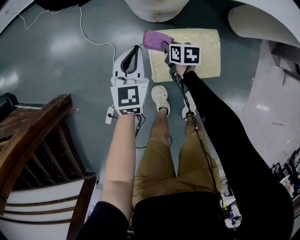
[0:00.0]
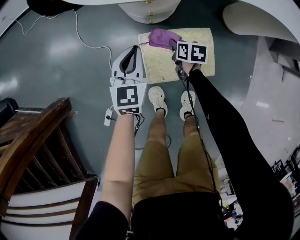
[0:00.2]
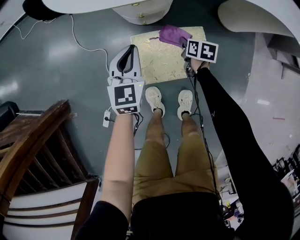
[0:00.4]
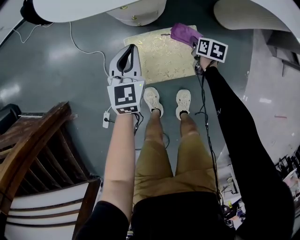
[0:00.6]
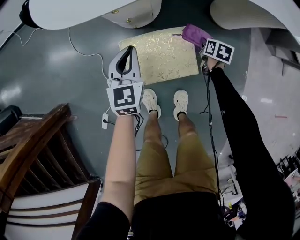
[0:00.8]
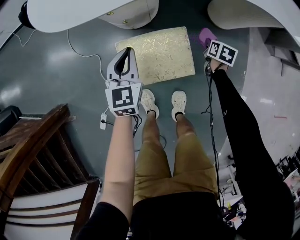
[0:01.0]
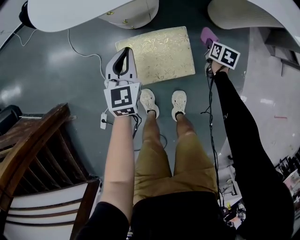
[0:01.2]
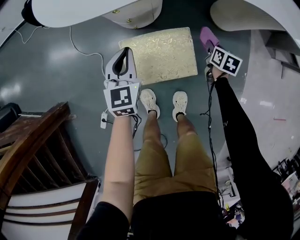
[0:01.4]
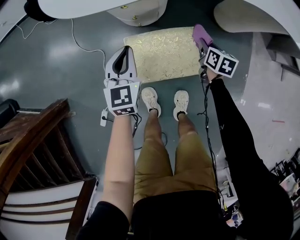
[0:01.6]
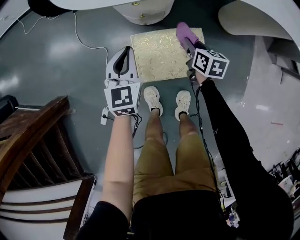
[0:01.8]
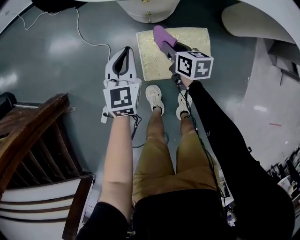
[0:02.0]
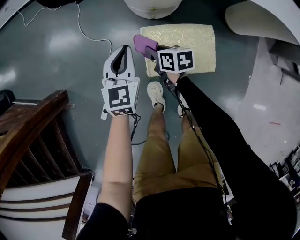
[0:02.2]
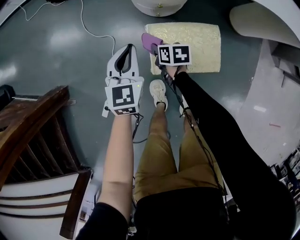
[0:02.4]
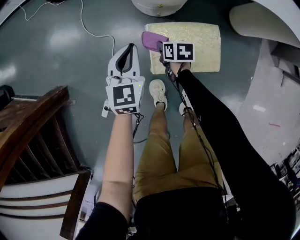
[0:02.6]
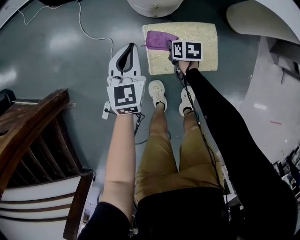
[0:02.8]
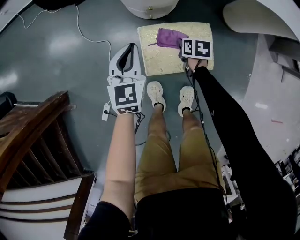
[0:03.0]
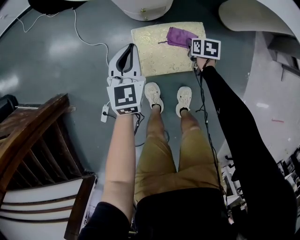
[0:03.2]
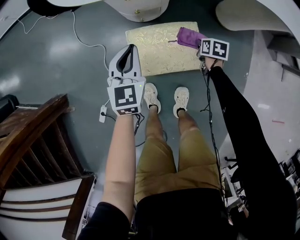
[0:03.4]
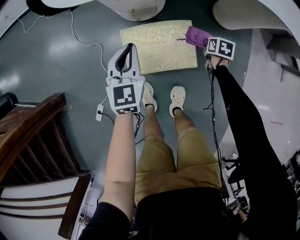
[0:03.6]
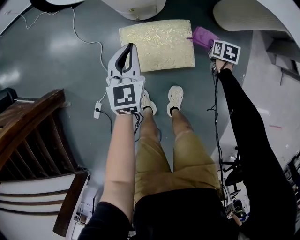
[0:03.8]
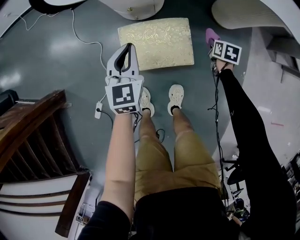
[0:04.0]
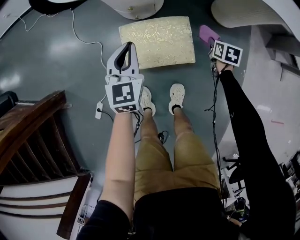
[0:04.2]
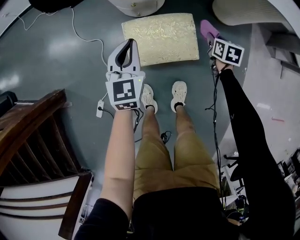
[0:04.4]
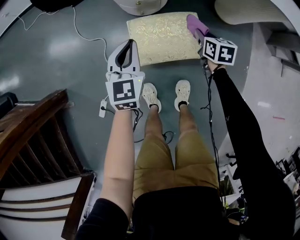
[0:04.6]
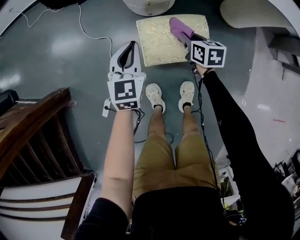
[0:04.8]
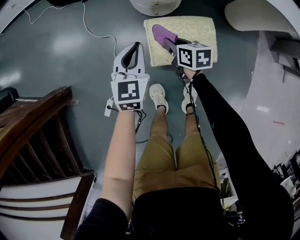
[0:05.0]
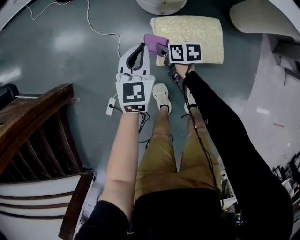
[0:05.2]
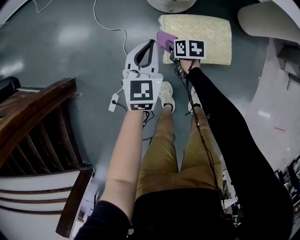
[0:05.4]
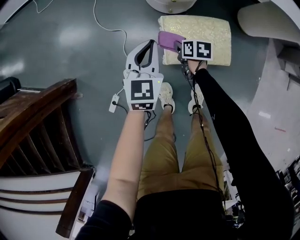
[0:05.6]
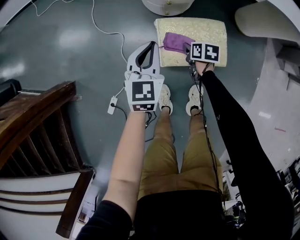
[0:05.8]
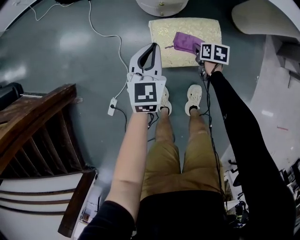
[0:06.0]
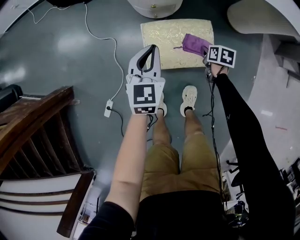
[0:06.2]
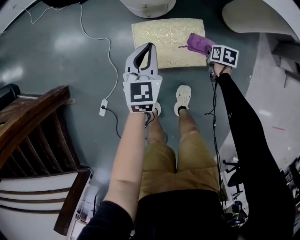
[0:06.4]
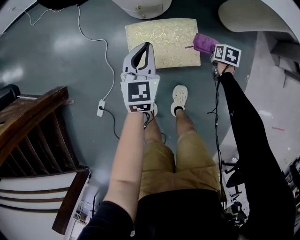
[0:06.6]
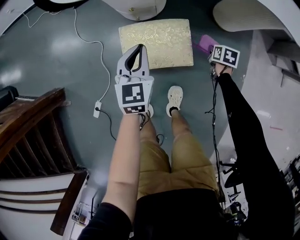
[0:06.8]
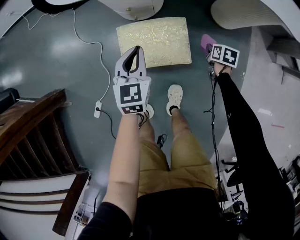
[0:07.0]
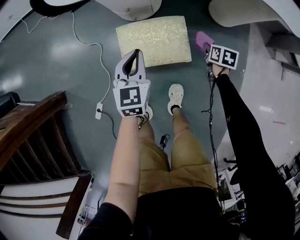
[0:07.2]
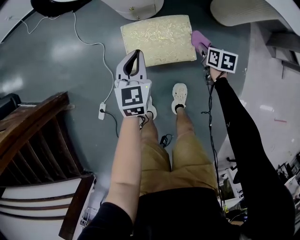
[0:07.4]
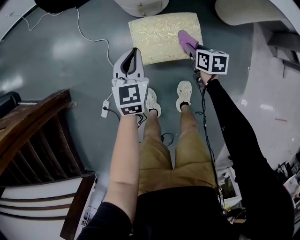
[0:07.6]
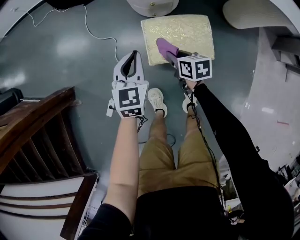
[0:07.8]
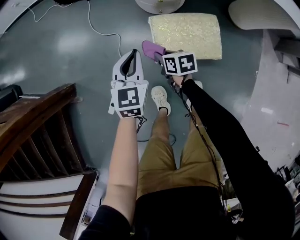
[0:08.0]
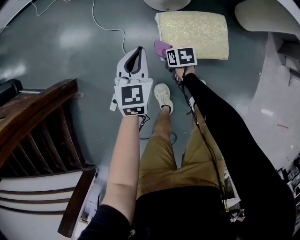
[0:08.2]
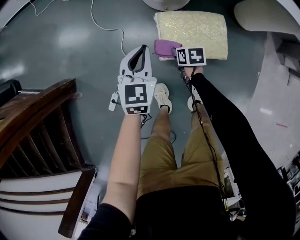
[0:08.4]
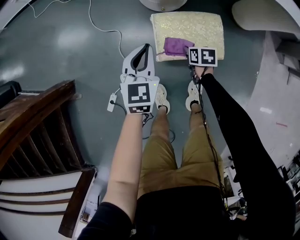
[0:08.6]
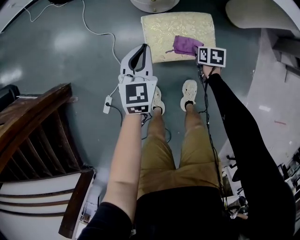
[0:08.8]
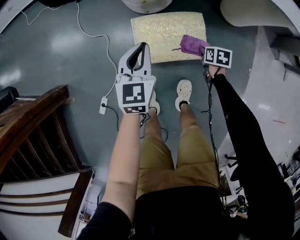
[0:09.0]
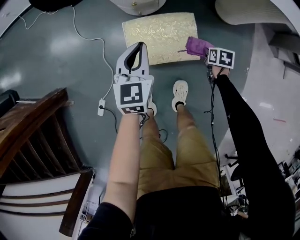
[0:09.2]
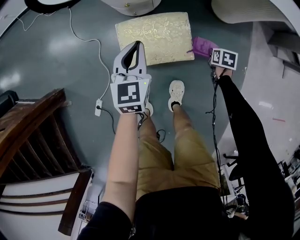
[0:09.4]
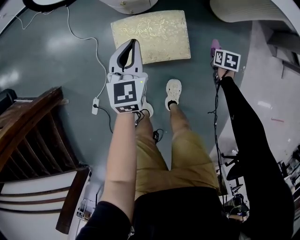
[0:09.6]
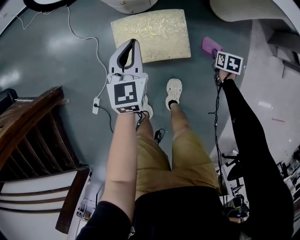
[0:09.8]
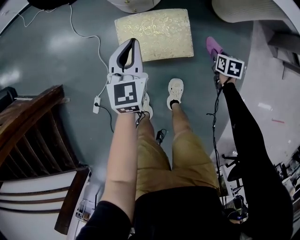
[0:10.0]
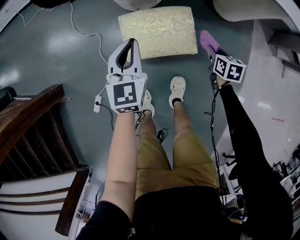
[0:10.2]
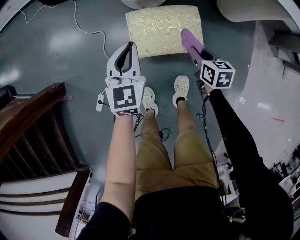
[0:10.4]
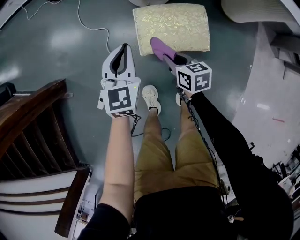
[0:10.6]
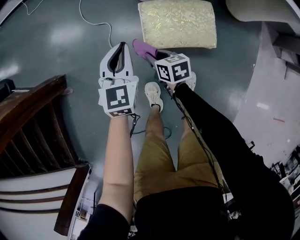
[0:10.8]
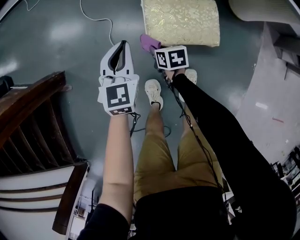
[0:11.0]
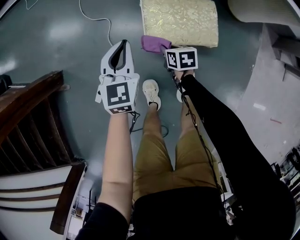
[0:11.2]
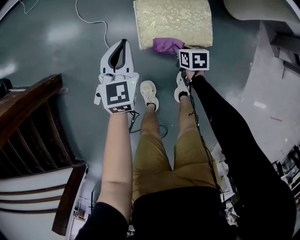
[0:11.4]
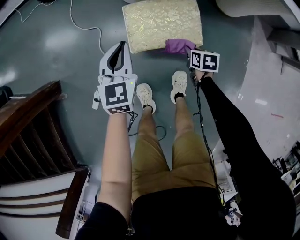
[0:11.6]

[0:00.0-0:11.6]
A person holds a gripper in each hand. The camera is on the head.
0:00.0 to 0:01.4: The right gripper travels to the right by approximately 35 cm, and turns by some 30 degrees; the left gripper moves to the right, roughly 10 cm.
0:01.4 to 0:02.8: The left gripper moves some 10 cm. Meanwhile the right gripper changes place by roughly 30 cm, and rotates some 20 degrees.
0:02.8 to 0:04.4: The right gripper goes some 30 cm to the right, while the left gripper travels to the right by approximately 10 cm.
0:04.4 to 0:05.8: The right gripper heads to the left, covering roughly 25 cm, and rotates about 20 degrees; the left gripper is displaced to the left by roughly 10 cm.
0:05.8 to 0:07.2: The left gripper is displaced to the right by roughly 15 cm, while the right gripper moves to the right, approximately 30 cm.
0:07.2 to 0:08.8: The right gripper goes some 20 cm to the left. The left gripper goes some 10 cm to the left.
0:08.8 to 0:10.2: The left gripper goes roughly 5 cm to the right. The right gripper is displaced to the right and upward by approximately 15 cm.
0:10.2 to 0:11.6: The right gripper is displaced downward by roughly 5 cm, and reaches some 35 cm to the left, then returns. Meanwhile the left gripper heads to the left, covering approximately 10 cm.

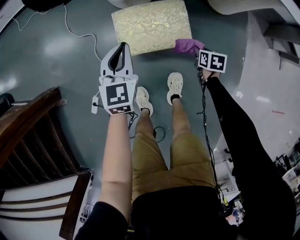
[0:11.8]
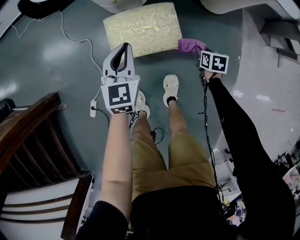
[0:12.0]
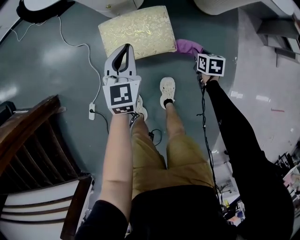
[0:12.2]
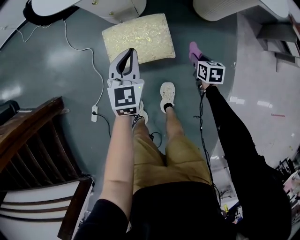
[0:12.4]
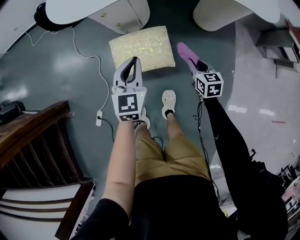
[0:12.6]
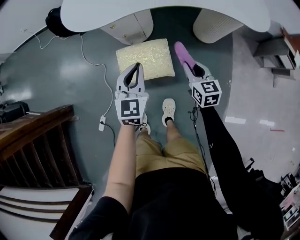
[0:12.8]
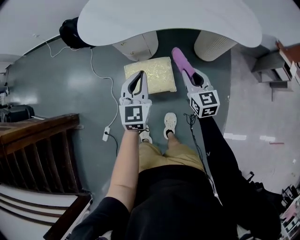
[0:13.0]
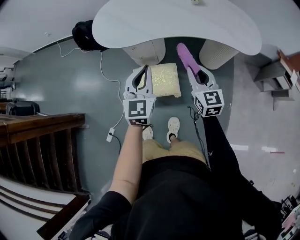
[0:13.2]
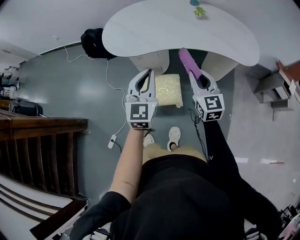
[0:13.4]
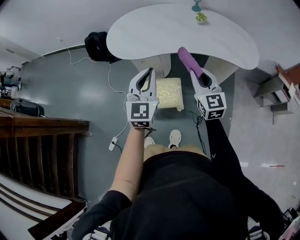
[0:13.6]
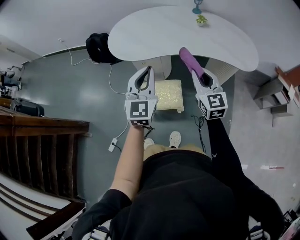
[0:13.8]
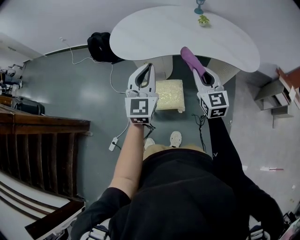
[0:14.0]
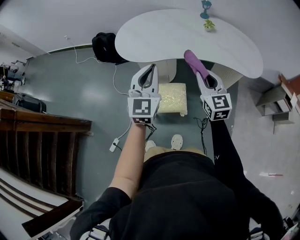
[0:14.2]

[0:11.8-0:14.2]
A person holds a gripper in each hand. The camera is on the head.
0:11.8 to 0:13.0: The right gripper travels upward by approximately 40 cm, and tips its fingers upward by approximately 40 degrees. The left gripper heads upward and to the right, covering roughly 25 cm.
0:13.0 to 0:14.2: The grippers both shift upward by about 20 cm.

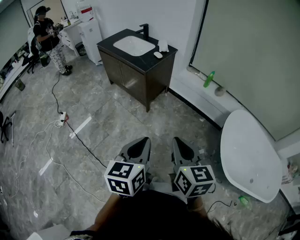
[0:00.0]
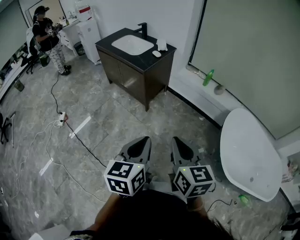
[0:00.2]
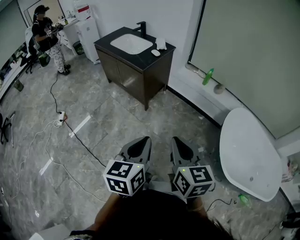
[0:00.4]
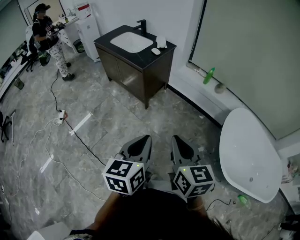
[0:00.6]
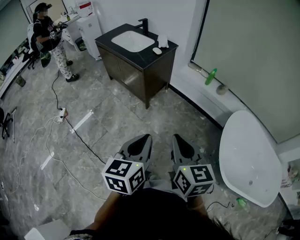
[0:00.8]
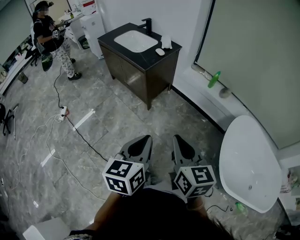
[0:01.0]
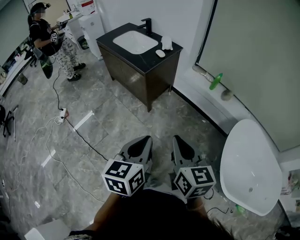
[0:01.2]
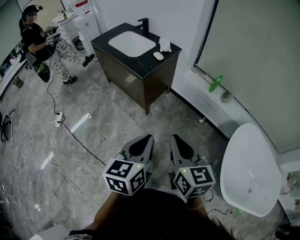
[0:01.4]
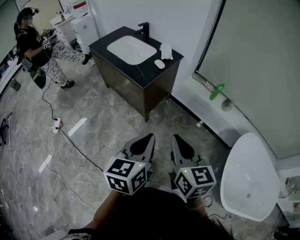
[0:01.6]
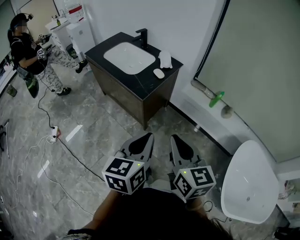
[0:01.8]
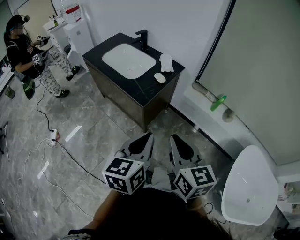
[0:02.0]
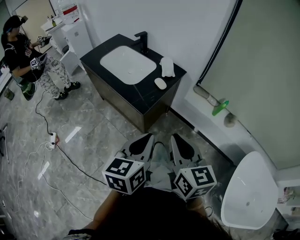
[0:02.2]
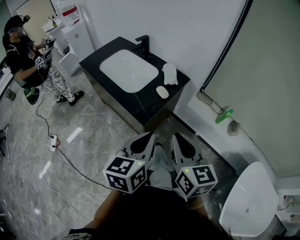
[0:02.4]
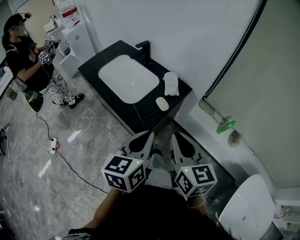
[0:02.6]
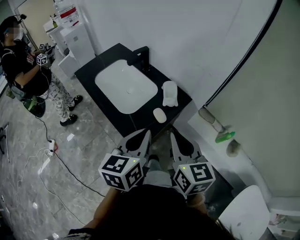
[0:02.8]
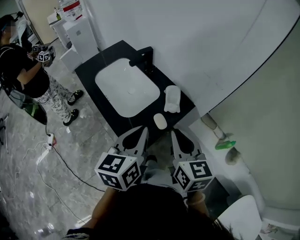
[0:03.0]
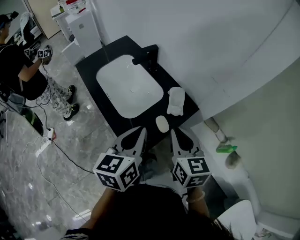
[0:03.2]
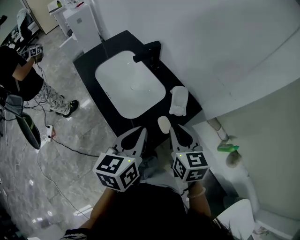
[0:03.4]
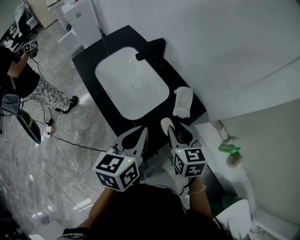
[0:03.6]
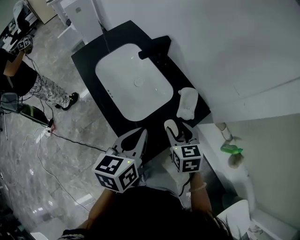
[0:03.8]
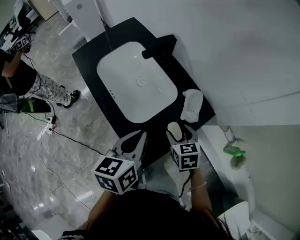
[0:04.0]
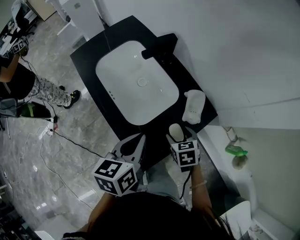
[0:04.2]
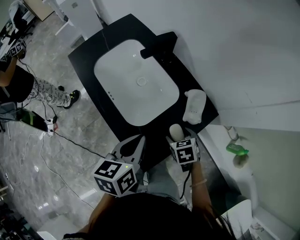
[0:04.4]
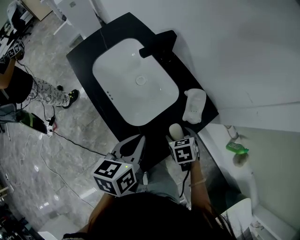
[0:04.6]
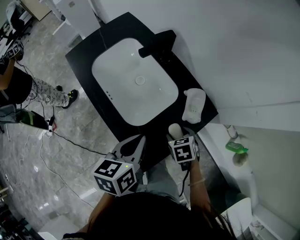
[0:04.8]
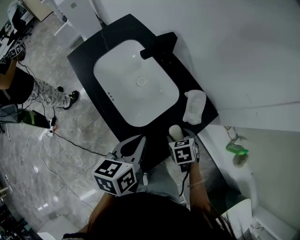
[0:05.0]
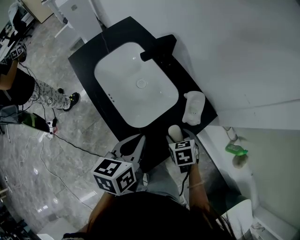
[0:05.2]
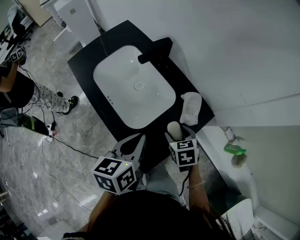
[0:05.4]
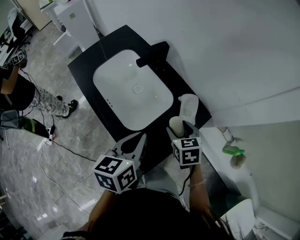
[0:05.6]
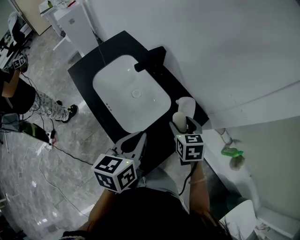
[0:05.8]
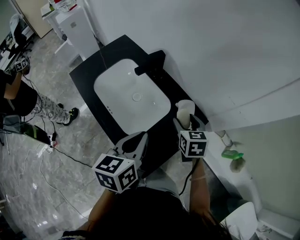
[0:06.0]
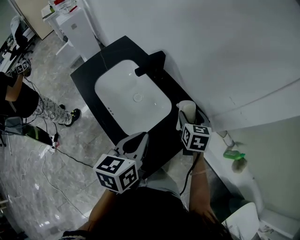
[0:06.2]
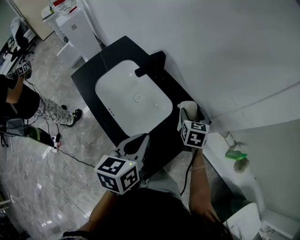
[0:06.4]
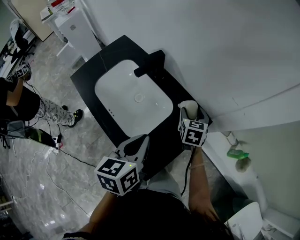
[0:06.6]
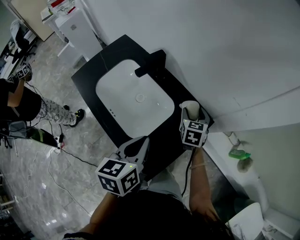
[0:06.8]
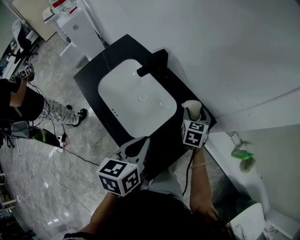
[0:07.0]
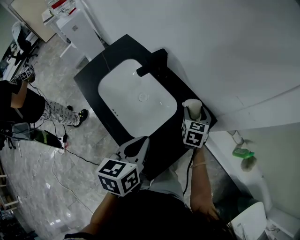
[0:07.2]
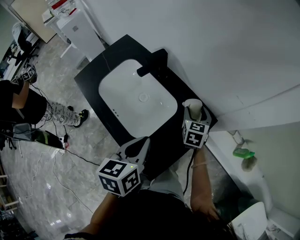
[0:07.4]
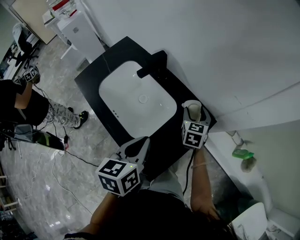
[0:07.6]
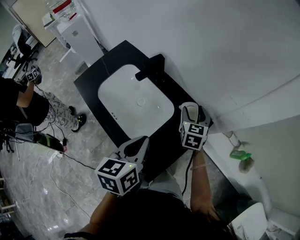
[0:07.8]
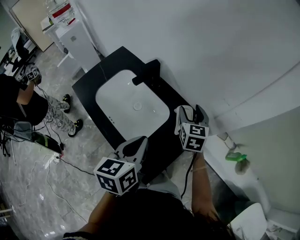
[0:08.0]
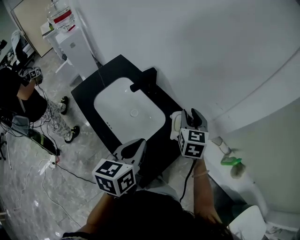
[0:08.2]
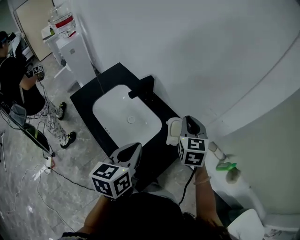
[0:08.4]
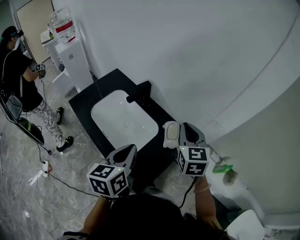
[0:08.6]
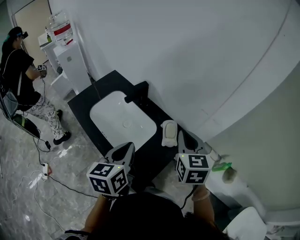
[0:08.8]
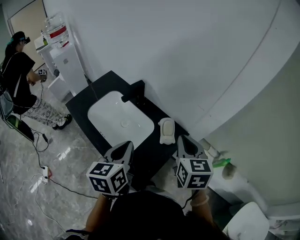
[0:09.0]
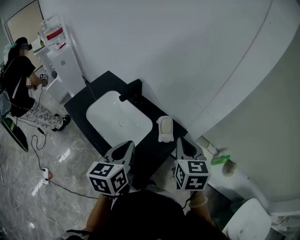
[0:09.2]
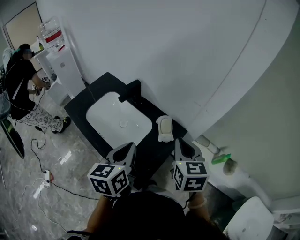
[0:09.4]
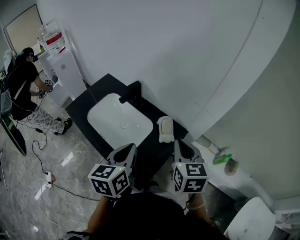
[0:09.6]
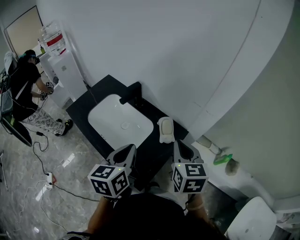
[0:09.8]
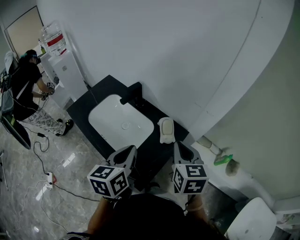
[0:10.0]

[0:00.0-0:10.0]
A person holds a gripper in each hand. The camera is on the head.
0:00.0 to 0:01.4: Both grippers move forward, approximately 20 cm.
0:01.4 to 0:02.8: The two grippers travel together, forward, about 50 cm.
0:02.8 to 0:04.2: The left gripper shifts roughly 20 cm forward, downward and to the left, and rotates some 20 degrees; the right gripper shifts roughly 35 cm downward and forward, tilts its fingers approximately 40 degrees downward, and opens its fingers.
0:04.2 to 0:05.8: The right gripper travels upward and forward by about 10 cm; the left gripper shifts by some 5 cm.
0:05.8 to 0:07.2: The right gripper travels forward and downward by about 10 cm.
0:07.2 to 0:08.6: The left gripper shifts roughly 5 cm upward, while the right gripper heads upward, covering about 25 cm, and closes its fingers.
0:08.6 to 0:10.0: The right gripper shifts some 10 cm backward.
